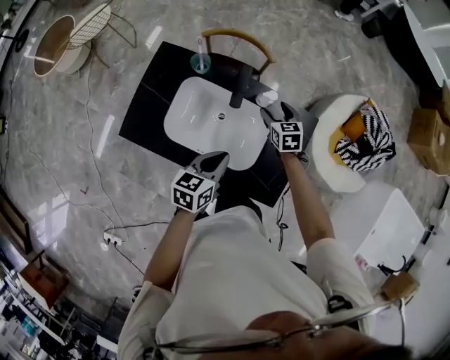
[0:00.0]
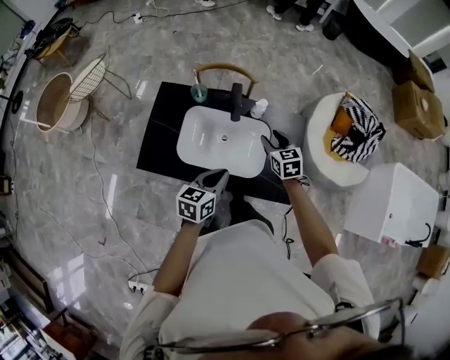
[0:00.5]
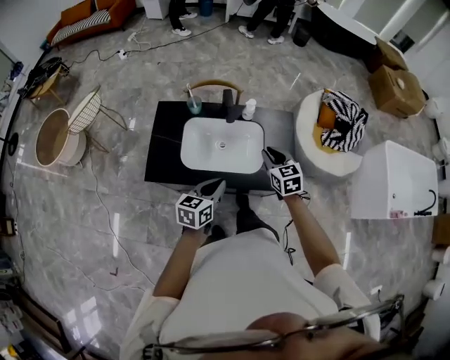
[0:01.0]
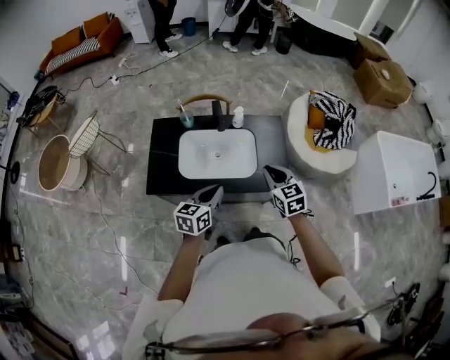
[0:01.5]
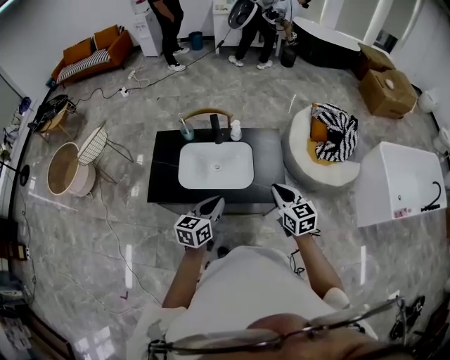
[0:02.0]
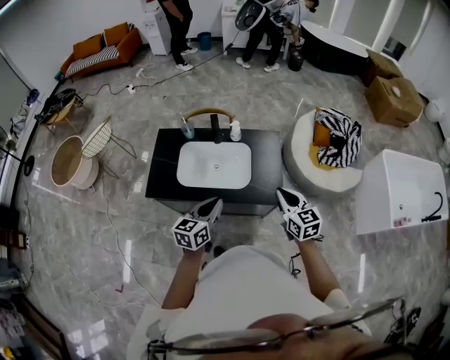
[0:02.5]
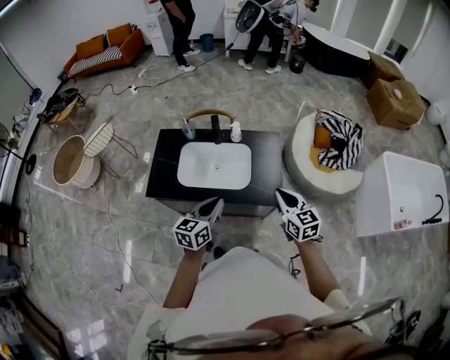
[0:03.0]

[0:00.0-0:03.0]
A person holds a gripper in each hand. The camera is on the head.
0:00.0 to 0:01.5: The right gripper moves backward and upward, roughly 50 cm, rotates about 20 degrees, and closes its fingers; the left gripper travels backward and upward by about 30 cm, and swivels some 20 degrees.
0:01.5 to 0:03.0: The left gripper shifts some 10 cm to the right and upward; the right gripper moves to the right and backward, some 15 cm.

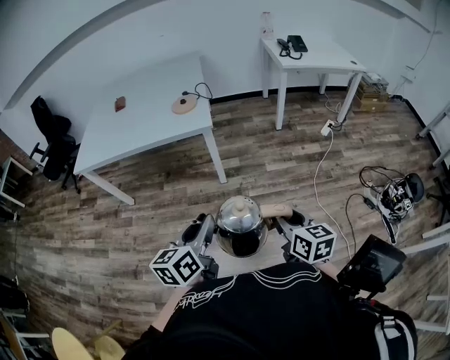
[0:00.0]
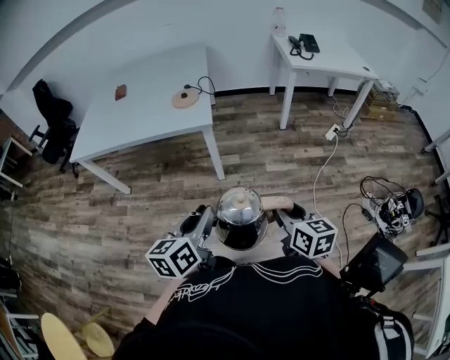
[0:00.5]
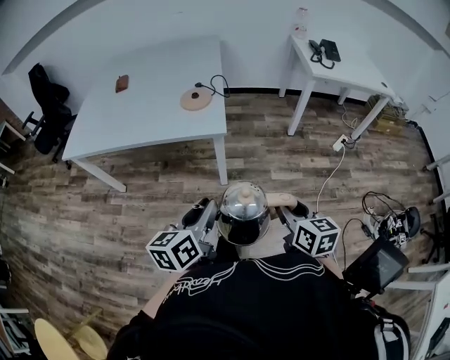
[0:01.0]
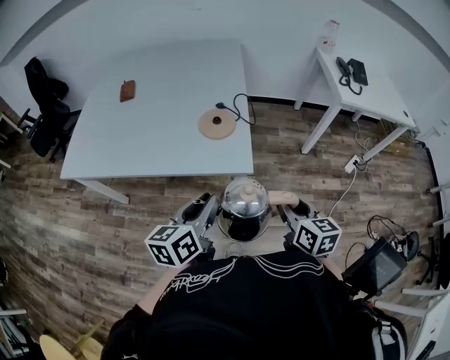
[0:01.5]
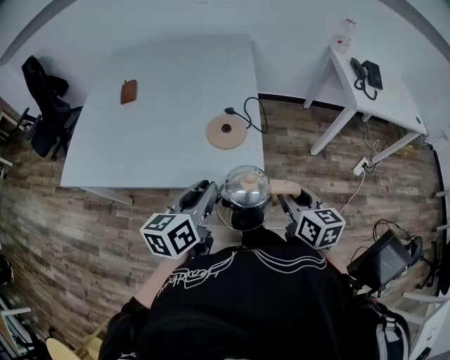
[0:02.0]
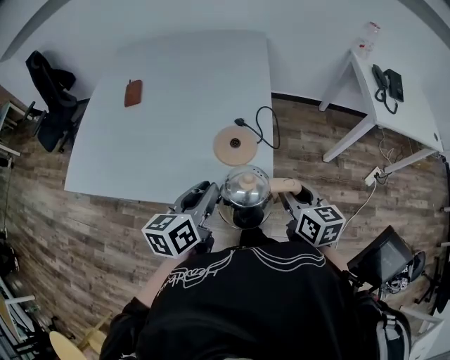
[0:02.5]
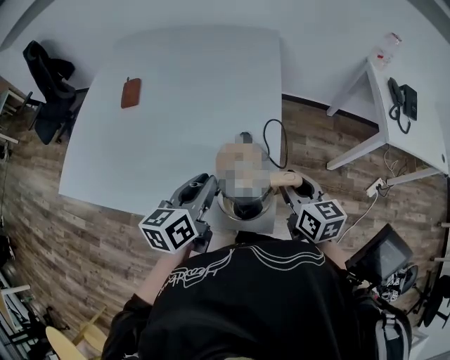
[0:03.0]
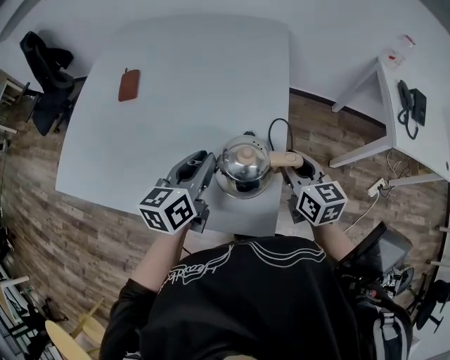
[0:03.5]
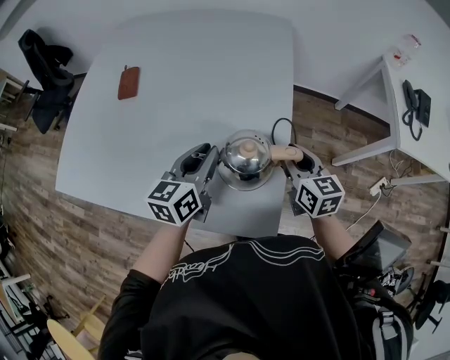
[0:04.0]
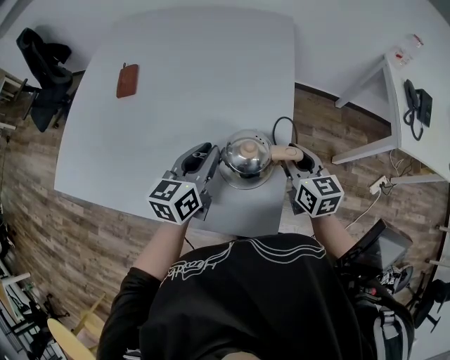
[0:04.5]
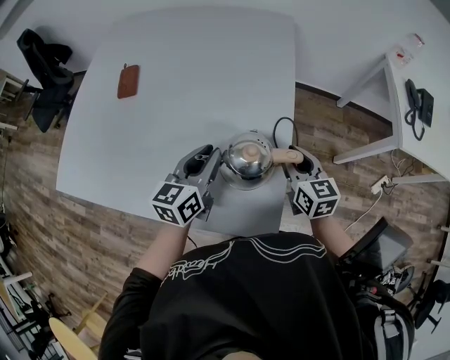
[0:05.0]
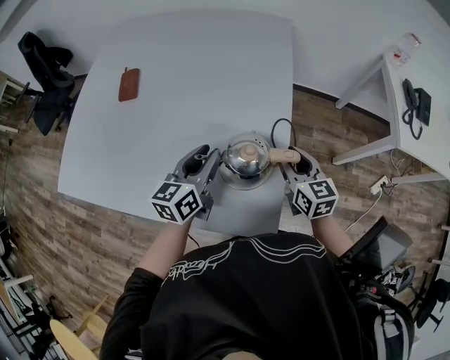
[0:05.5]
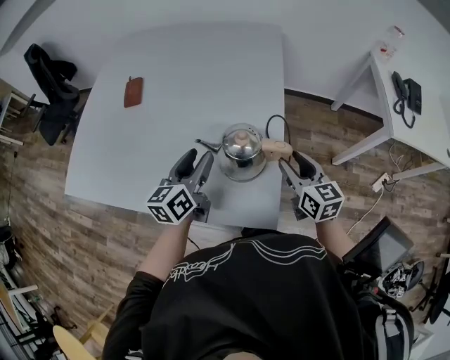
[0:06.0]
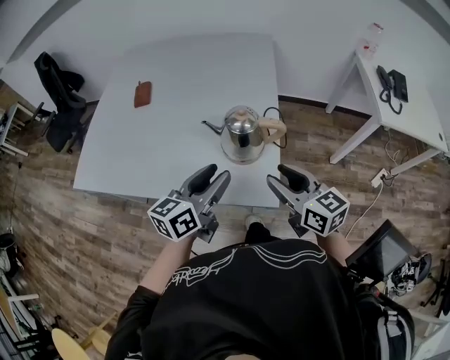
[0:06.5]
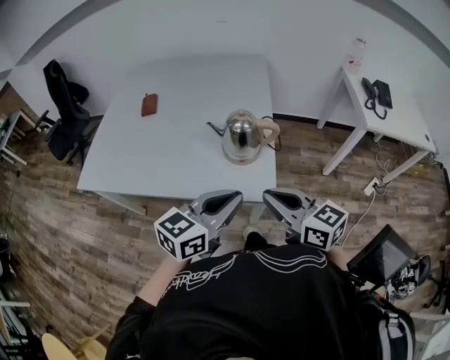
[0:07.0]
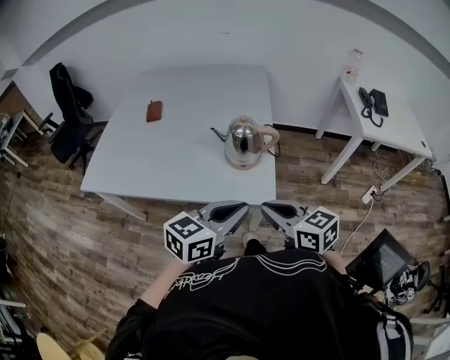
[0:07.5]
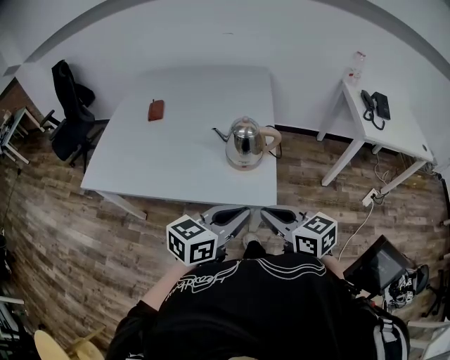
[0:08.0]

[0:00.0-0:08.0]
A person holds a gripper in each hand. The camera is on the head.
0:00.0 to 0:02.0: Both grippers are carried forward, some 50 cm.
0:02.0 to 0:04.0: The grippers both shift forward by approximately 30 cm.
0:04.0 to 0:06.0: The left gripper opens its fingers, while the right gripper shifts about 5 cm backward.
0:06.0 to 0:08.0: Both grippers move backward, some 30 cm. The left gripper changes its angle by about 40 degrees, and closes. Meanwhile the right gripper turns by some 20 degrees, and closes.

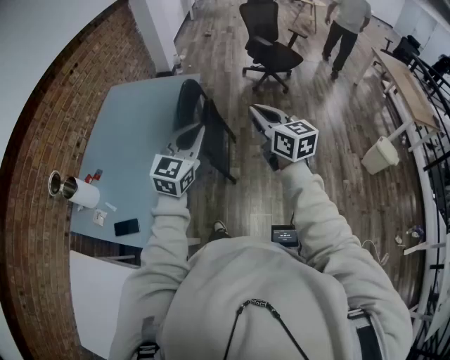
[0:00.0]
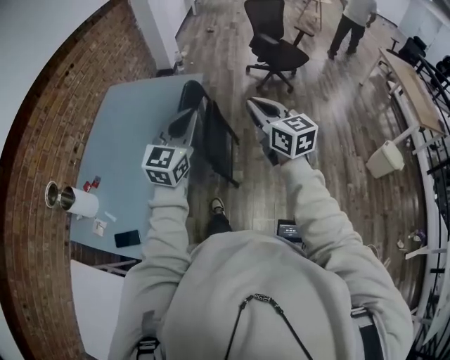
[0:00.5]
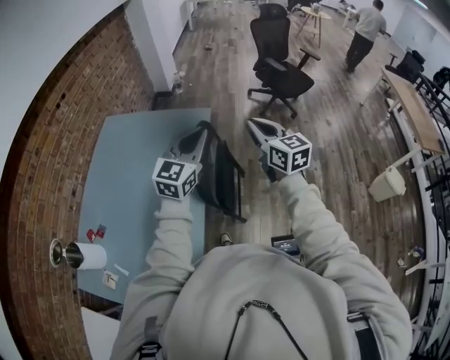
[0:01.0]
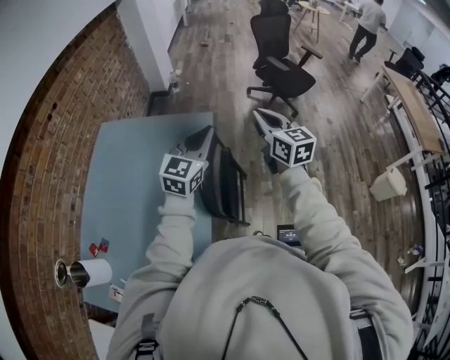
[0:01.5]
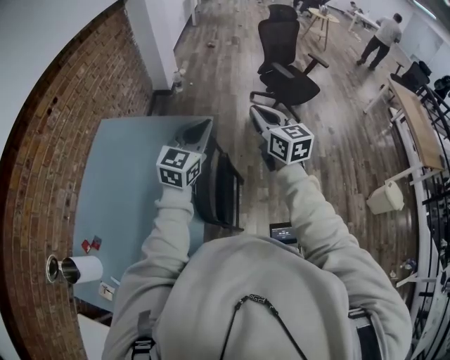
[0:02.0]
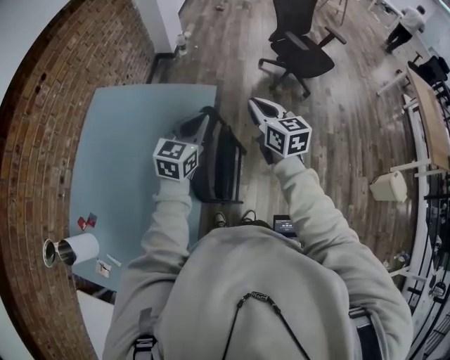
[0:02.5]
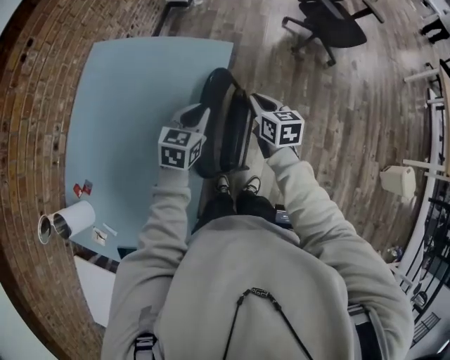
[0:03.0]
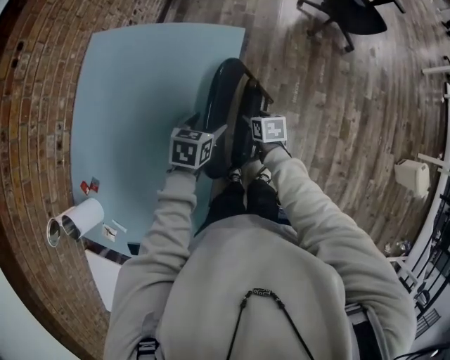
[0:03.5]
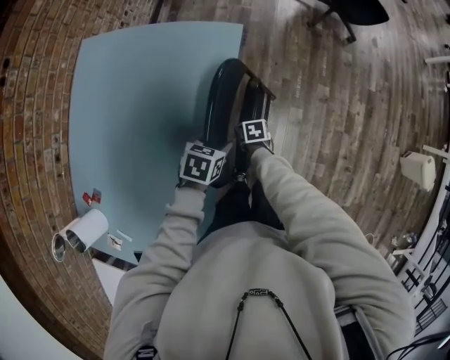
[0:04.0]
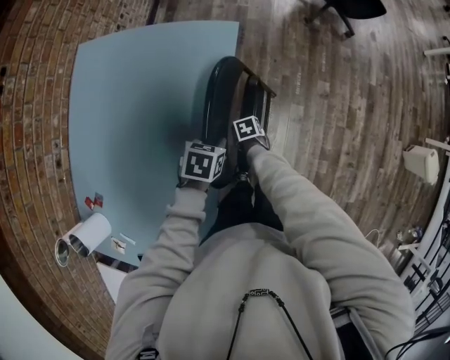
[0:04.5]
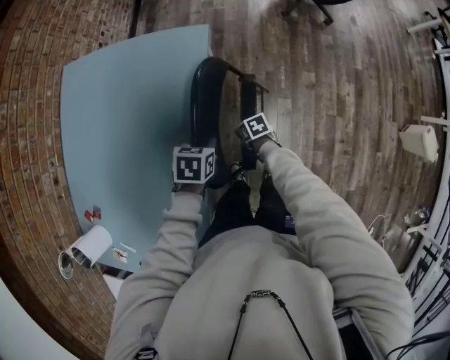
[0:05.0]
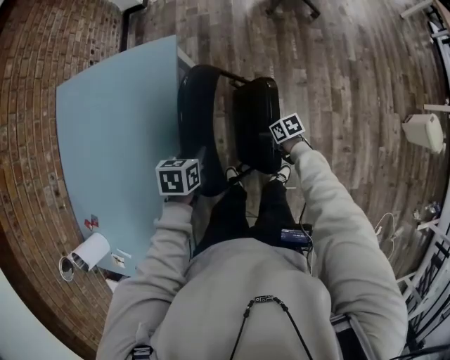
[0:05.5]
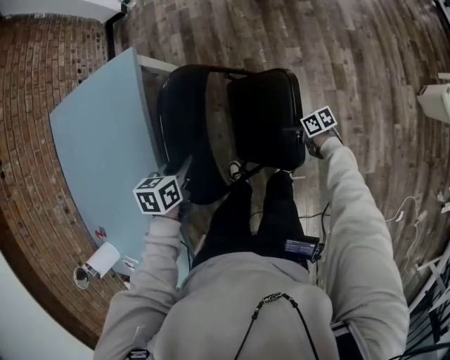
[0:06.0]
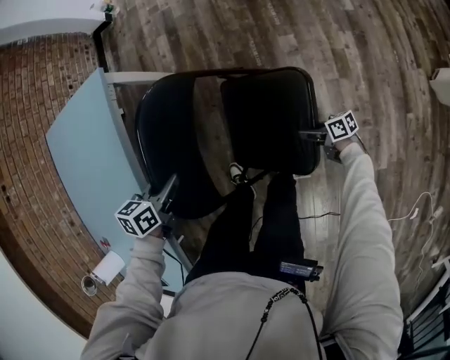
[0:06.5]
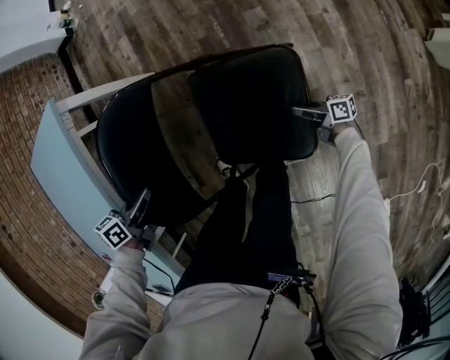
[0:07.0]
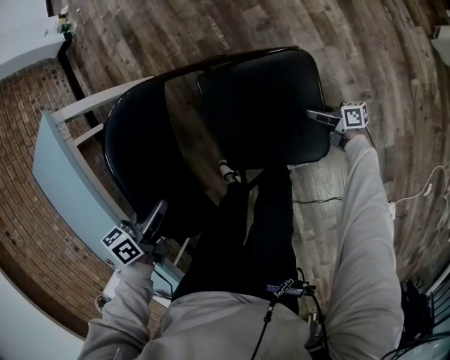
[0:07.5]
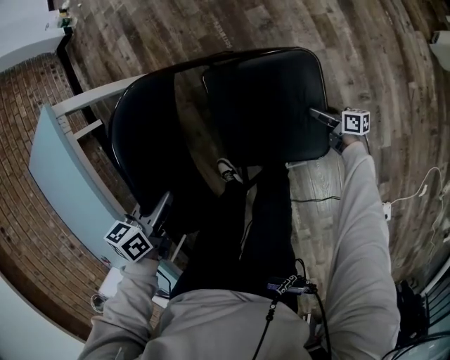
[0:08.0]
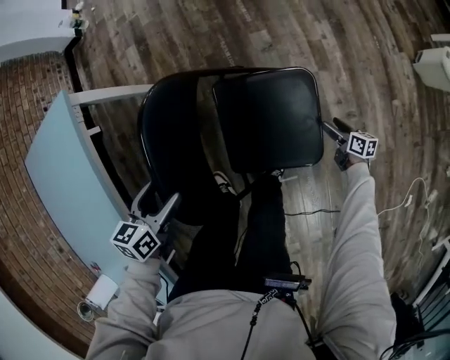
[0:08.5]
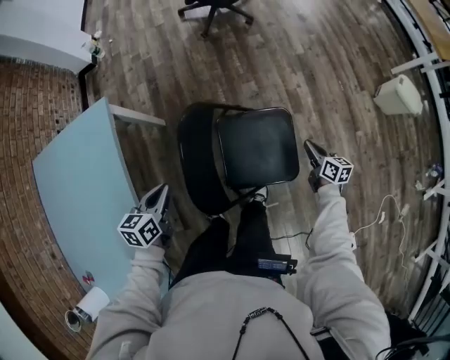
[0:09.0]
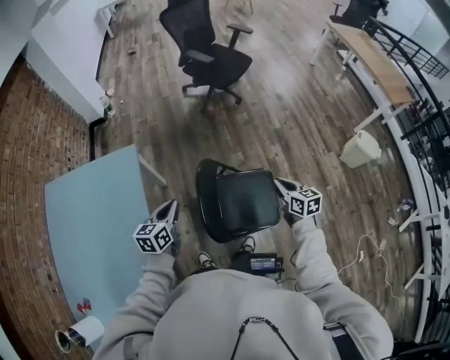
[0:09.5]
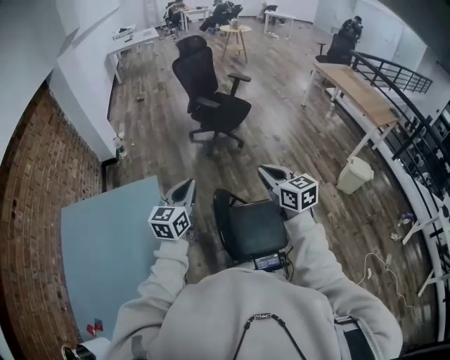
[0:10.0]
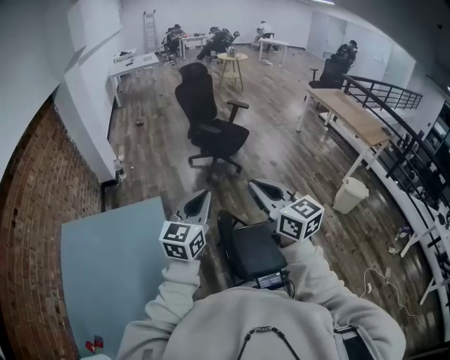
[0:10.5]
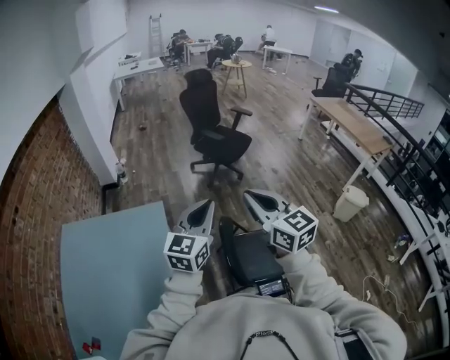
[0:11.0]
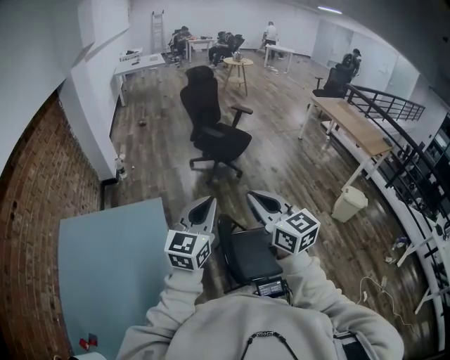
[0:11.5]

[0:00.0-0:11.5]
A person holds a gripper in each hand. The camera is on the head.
0:00.0 to 0:02.0: The two grippers travel together, forward, roughly 50 cm.
0:02.0 to 0:04.0: Both grippers travel together downward, approximately 50 cm. The left gripper tips its fingers downward by about 60 degrees, and opens; the right gripper tips its fingers downward by about 60 degrees, and opens up.
0:04.0 to 0:06.0: The right gripper heads to the right and backward, covering approximately 40 cm, and points its fingers about 40 degrees further upward. Meanwhile the left gripper moves to the right and backward, roughly 20 cm, and closes.
0:06.0 to 0:07.5: The left gripper moves downward, some 15 cm; the right gripper travels downward by about 25 cm, and changes its angle by approximately 40 degrees.
0:07.5 to 0:09.5: The right gripper heads upward, covering about 60 cm, rotates roughly 60 degrees, and closes its fingers, while the left gripper is displaced upward by roughly 35 cm, rotates about 40 degrees, and opens and closes again.
0:09.5 to 0:11.5: The left gripper shifts roughly 30 cm upward, and swivels some 40 degrees. Meanwhile the right gripper moves upward and to the left, roughly 50 cm, and turns by roughly 30 degrees.

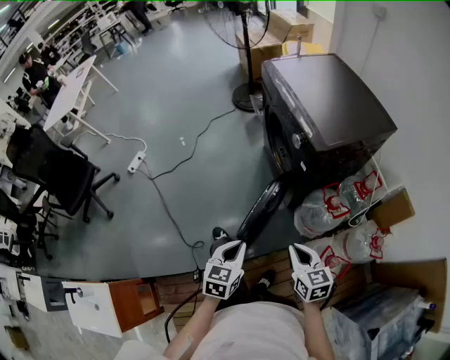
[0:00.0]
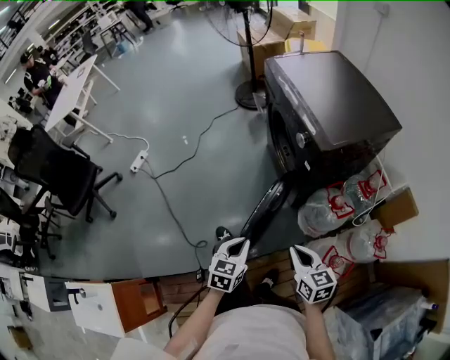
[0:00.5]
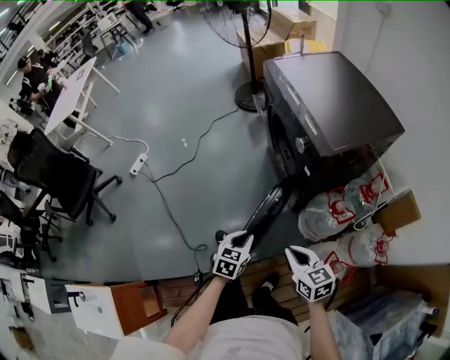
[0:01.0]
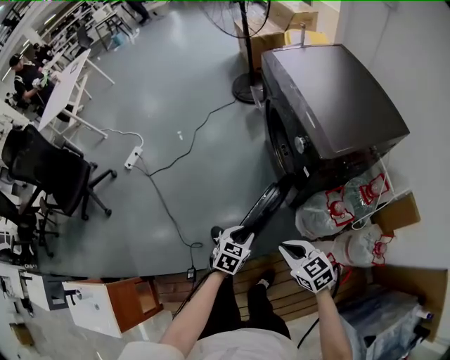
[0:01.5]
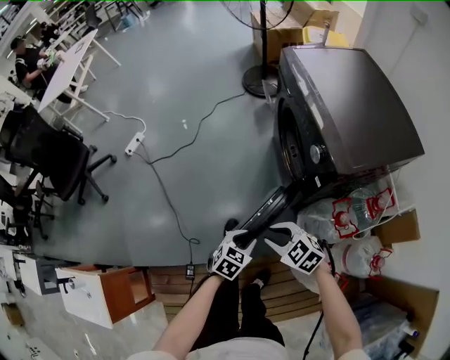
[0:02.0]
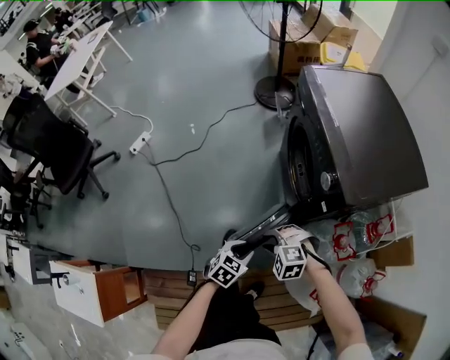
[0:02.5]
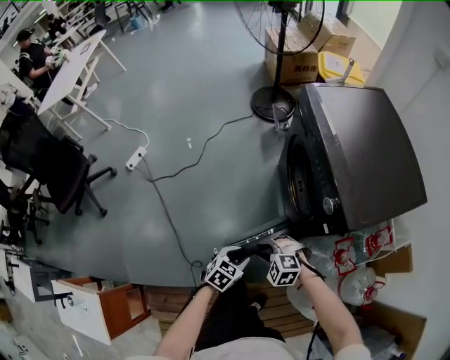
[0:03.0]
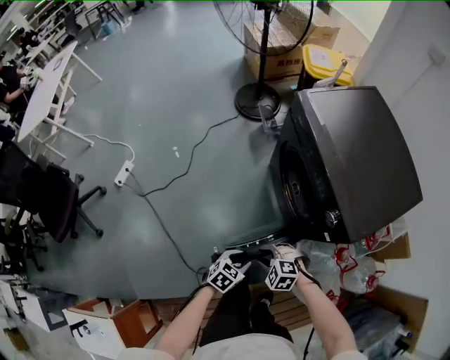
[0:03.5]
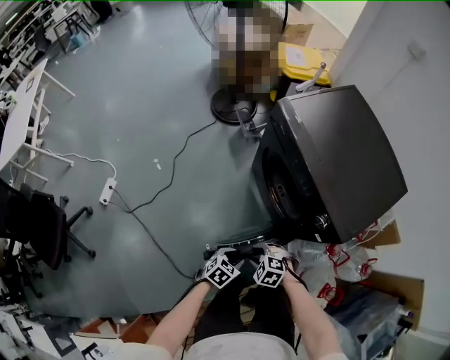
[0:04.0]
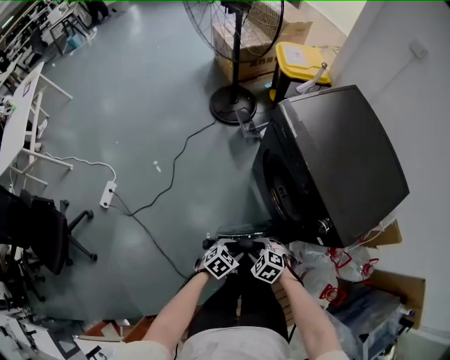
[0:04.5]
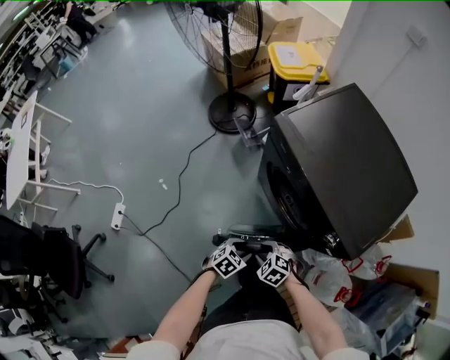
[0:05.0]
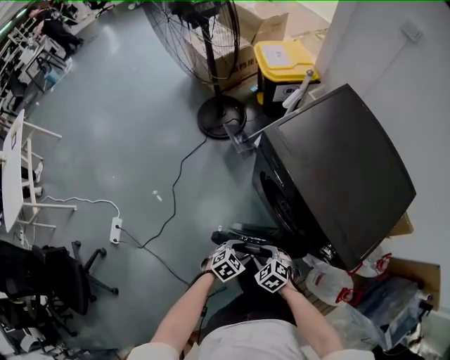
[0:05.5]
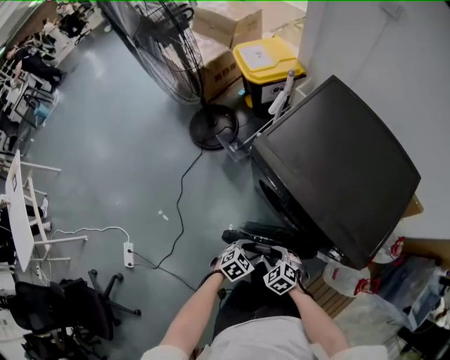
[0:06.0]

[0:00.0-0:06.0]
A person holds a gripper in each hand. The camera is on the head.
0:00.0 to 0:02.0: The right gripper heads forward, to the left and downward, covering some 15 cm, swivels some 50 degrees, and opens. Meanwhile the left gripper moves downward and forward, about 15 cm, and opens up.
0:02.0 to 0:04.0: The left gripper shifts by roughly 20 cm, and rotates approximately 20 degrees. The right gripper moves approximately 20 cm, and swivels some 20 degrees.
0:04.0 to 0:06.0: The right gripper ends up some 20 cm from where it was, and changes its angle by approximately 40 degrees; the left gripper moves about 25 cm, and swivels about 30 degrees.
